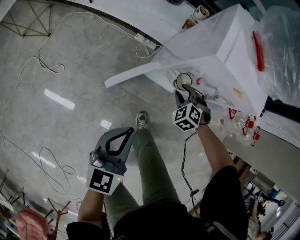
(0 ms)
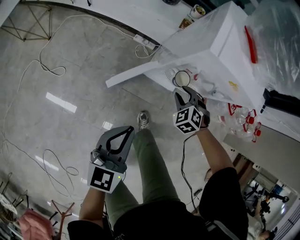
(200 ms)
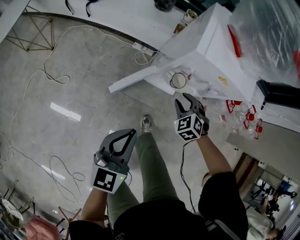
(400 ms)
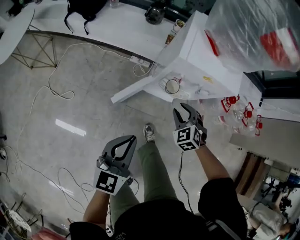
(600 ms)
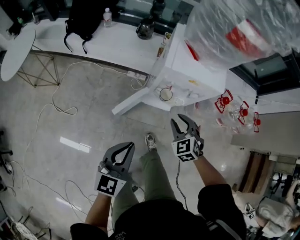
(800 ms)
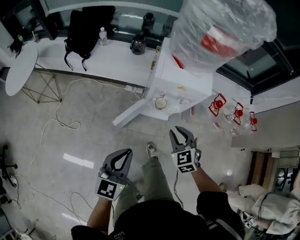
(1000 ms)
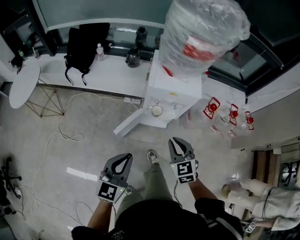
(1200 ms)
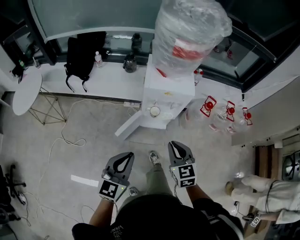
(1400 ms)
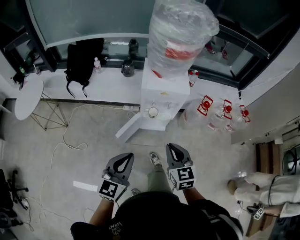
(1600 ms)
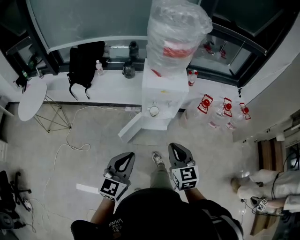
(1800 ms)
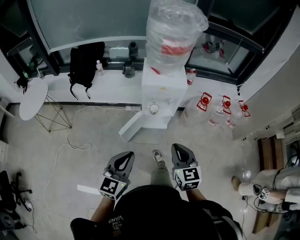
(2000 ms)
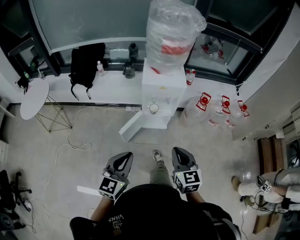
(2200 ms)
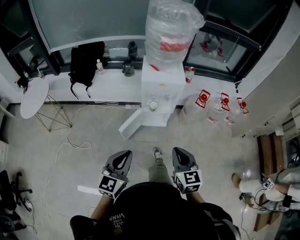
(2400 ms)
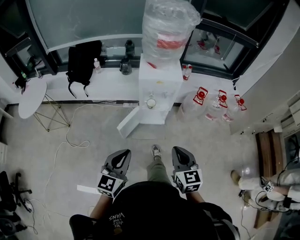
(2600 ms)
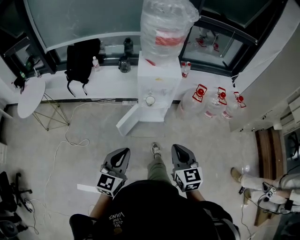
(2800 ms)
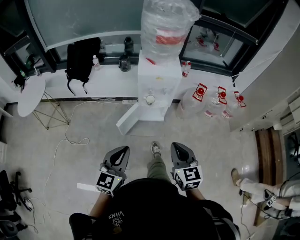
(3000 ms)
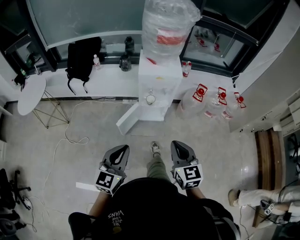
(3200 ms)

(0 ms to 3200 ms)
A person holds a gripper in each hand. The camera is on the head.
0 ms - 1600 ms: The left gripper is displaced upward and backward by about 35 cm, and changes its angle by roughly 20 degrees, while the right gripper heads upward and backward, covering some 50 cm, and rotates around the line of its fingers by roughly 60 degrees, clockwise from behind.
1600 ms - 3200 ms: The grippers both shift backward by about 15 cm.

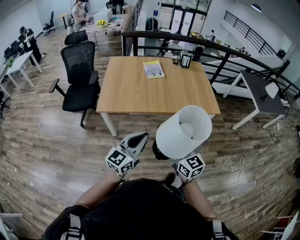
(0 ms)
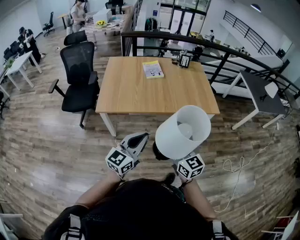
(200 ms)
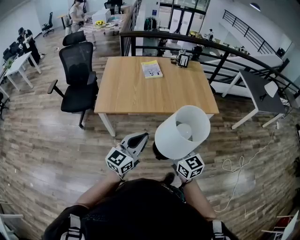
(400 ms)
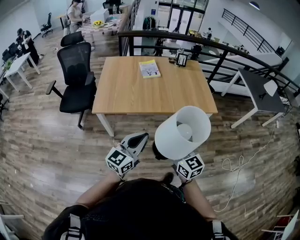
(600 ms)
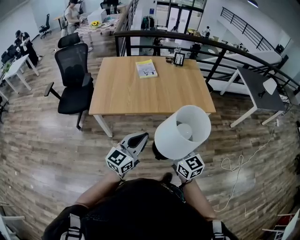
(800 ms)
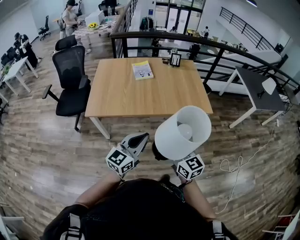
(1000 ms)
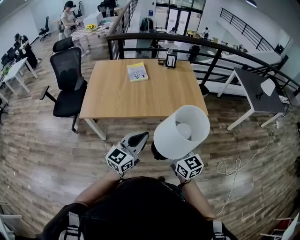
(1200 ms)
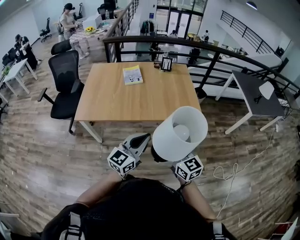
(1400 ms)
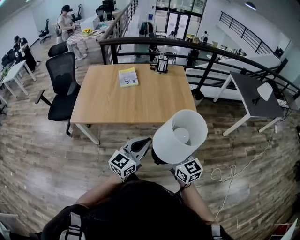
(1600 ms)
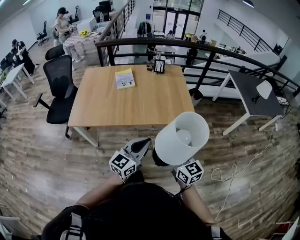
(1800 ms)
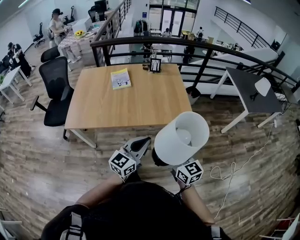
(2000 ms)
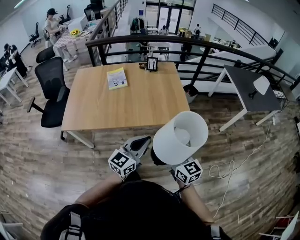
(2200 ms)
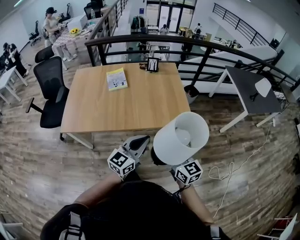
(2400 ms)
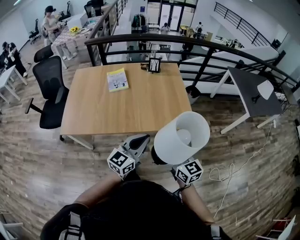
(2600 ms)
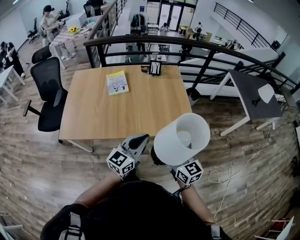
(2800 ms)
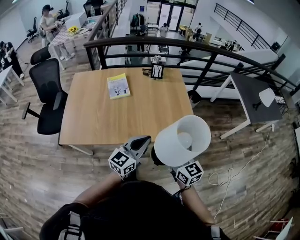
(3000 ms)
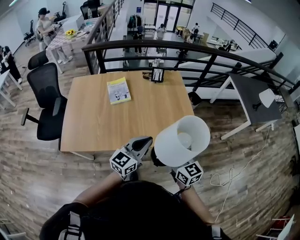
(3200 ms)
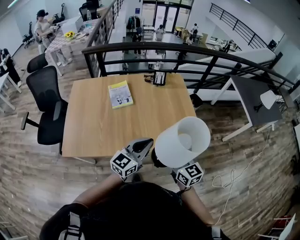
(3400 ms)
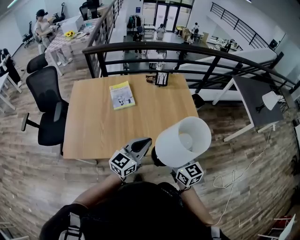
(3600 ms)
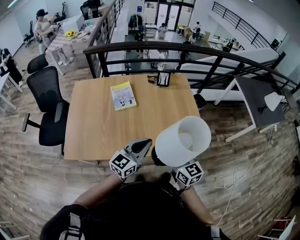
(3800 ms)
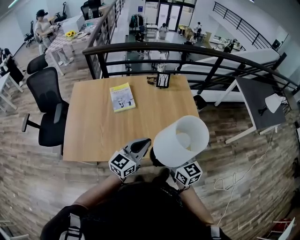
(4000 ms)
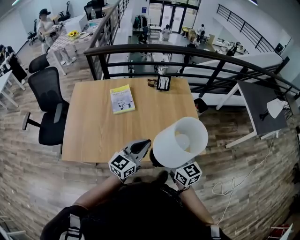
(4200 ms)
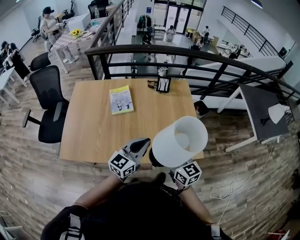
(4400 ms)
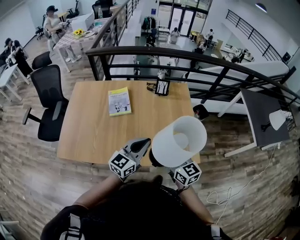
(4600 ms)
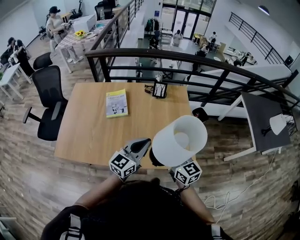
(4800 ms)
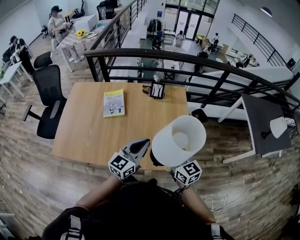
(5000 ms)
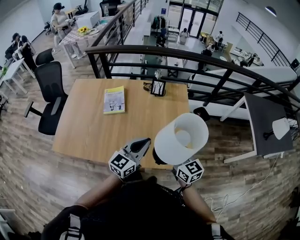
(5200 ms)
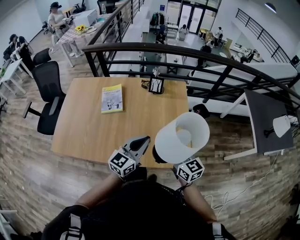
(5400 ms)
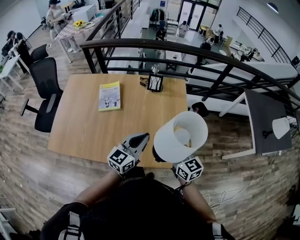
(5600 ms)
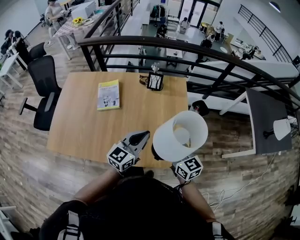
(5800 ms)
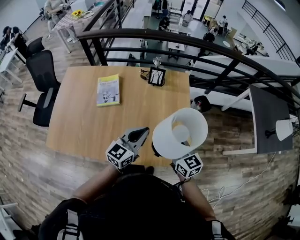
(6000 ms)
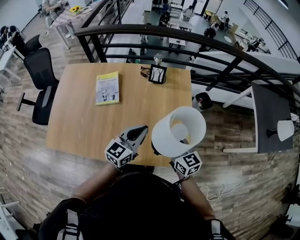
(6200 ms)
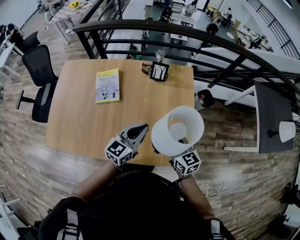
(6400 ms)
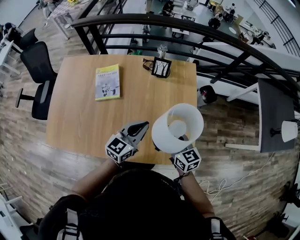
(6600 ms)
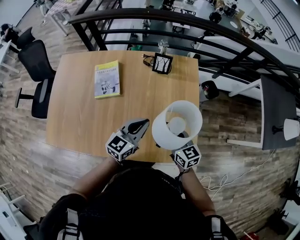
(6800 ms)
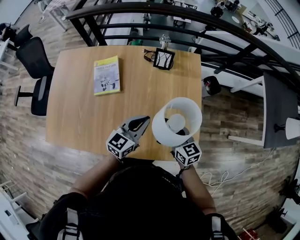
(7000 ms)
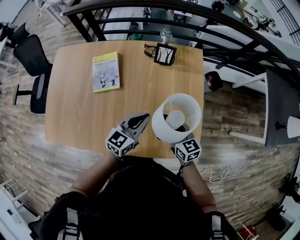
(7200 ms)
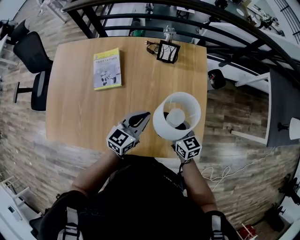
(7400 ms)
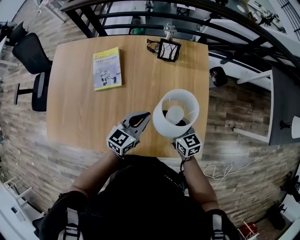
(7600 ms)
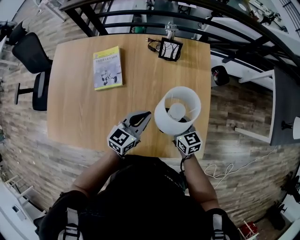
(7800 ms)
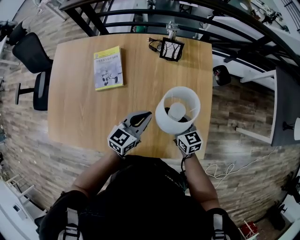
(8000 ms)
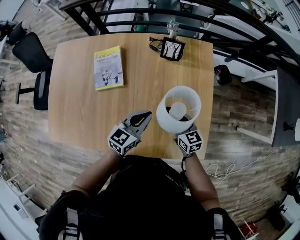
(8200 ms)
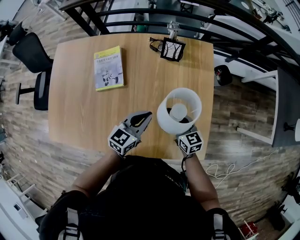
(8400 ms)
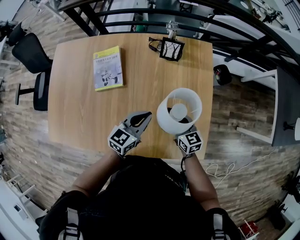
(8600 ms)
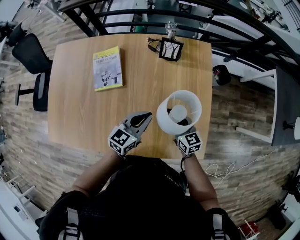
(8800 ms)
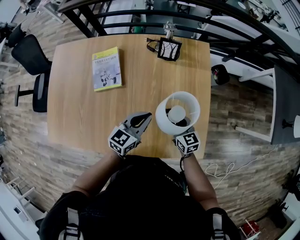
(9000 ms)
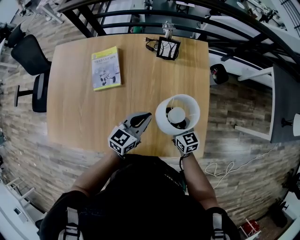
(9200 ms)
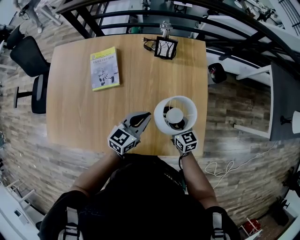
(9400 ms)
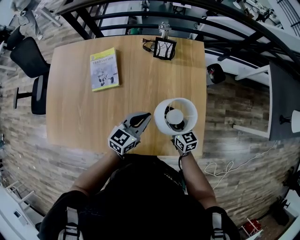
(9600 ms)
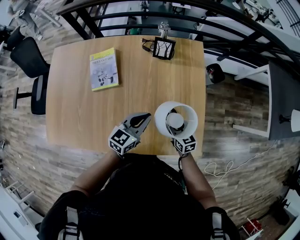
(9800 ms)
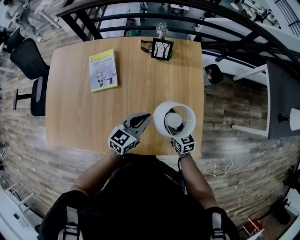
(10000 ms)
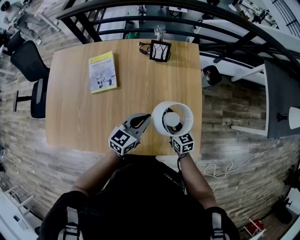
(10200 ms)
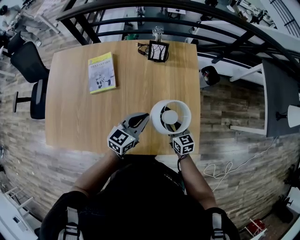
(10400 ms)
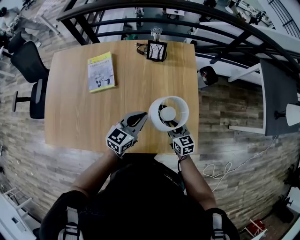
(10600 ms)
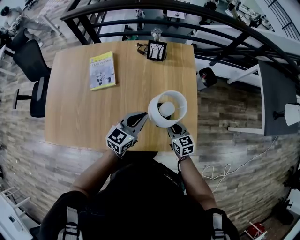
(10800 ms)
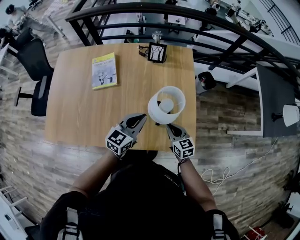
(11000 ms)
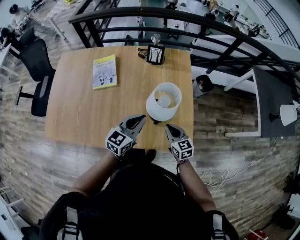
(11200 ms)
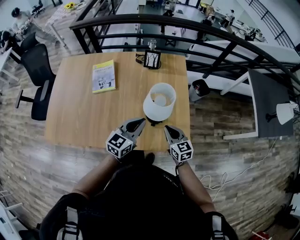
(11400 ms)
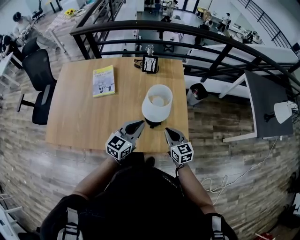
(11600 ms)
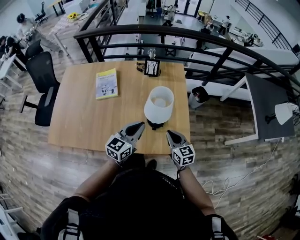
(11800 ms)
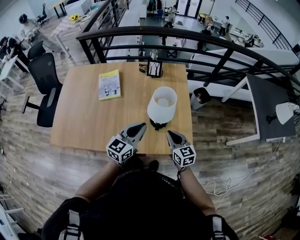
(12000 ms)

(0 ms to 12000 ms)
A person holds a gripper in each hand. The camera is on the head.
0 ms - 1600 ms: Both grippers move to the right, approximately 30 cm.
1600 ms - 3000 ms: The grippers both shift forward by some 20 cm.
3000 ms - 4400 ms: Both grippers move forward, some 15 cm.
4400 ms - 6000 ms: The two grippers go about 20 cm to the right and forward.
6000 ms - 7600 ms: Both grippers travel together downward and forward, about 20 cm.
7600 ms - 9000 ms: The grippers stay close to where they were, moving slightly.
9000 ms - 10400 ms: The left gripper moves roughly 5 cm. Meanwhile the right gripper moves backward, approximately 5 cm.
10400 ms - 12000 ms: The grippers both shift backward and upward by some 20 cm. The right gripper closes.

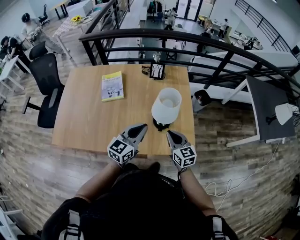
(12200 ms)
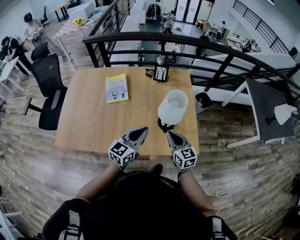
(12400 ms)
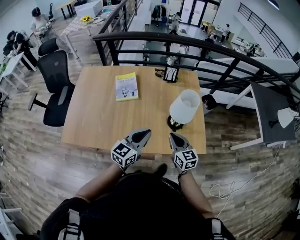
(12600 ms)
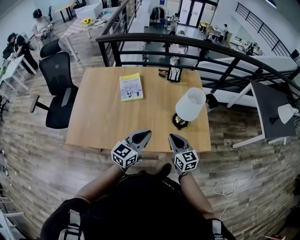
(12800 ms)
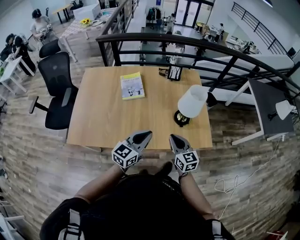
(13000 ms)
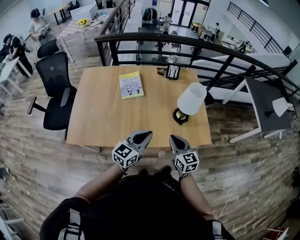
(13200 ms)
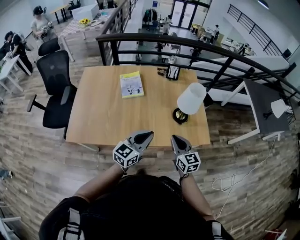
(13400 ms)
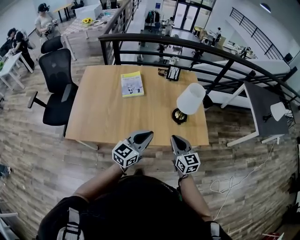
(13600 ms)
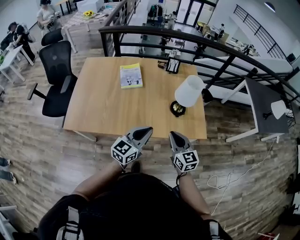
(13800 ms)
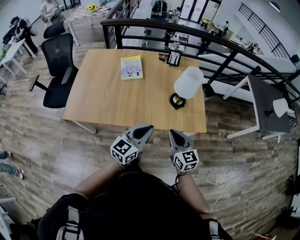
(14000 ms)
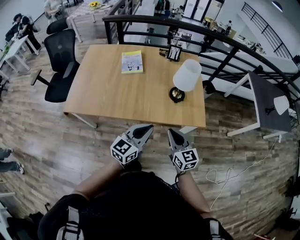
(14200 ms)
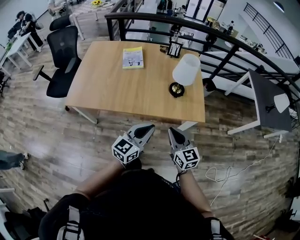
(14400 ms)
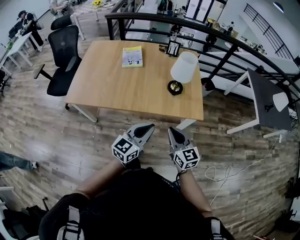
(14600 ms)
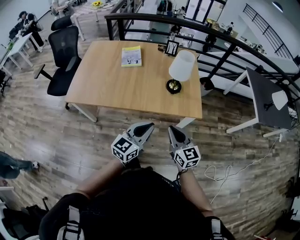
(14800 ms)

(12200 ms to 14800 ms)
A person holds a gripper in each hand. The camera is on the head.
12200 ms - 13400 ms: The right gripper shifts approximately 20 cm to the left and backward. Meanwhile the left gripper shifts approximately 20 cm backward and to the left.
13400 ms - 14800 ms: Both grippers travel together backward and to the right, approximately 25 cm.

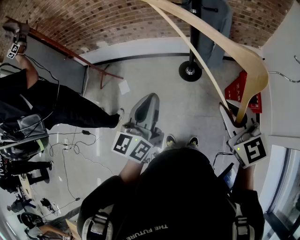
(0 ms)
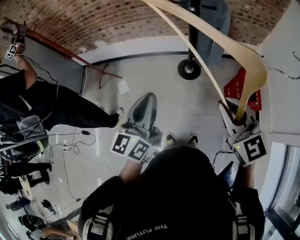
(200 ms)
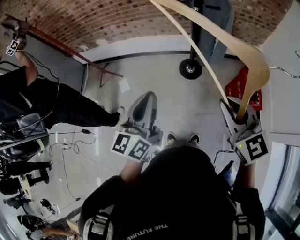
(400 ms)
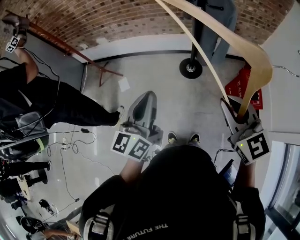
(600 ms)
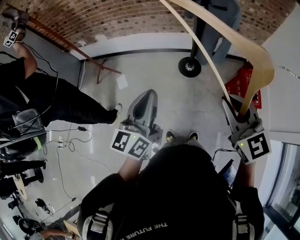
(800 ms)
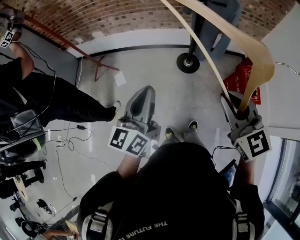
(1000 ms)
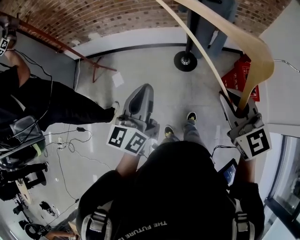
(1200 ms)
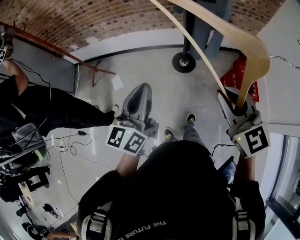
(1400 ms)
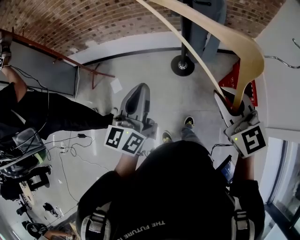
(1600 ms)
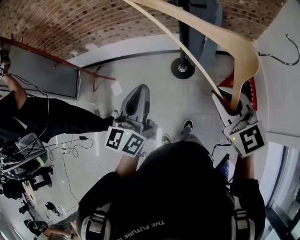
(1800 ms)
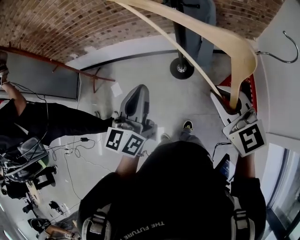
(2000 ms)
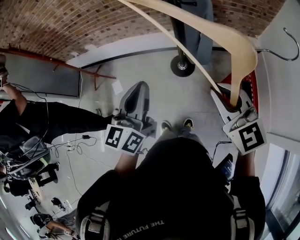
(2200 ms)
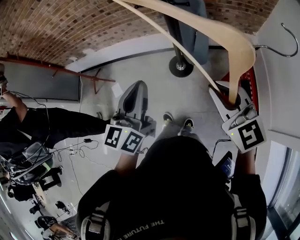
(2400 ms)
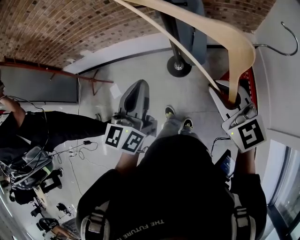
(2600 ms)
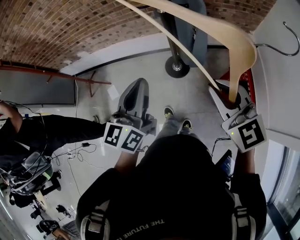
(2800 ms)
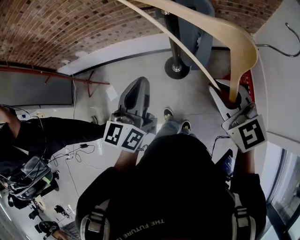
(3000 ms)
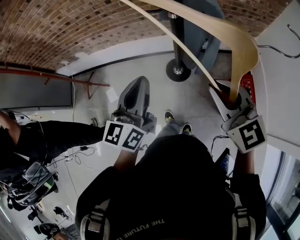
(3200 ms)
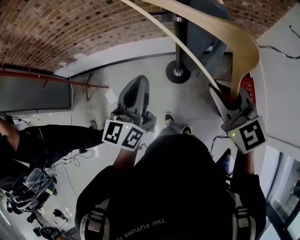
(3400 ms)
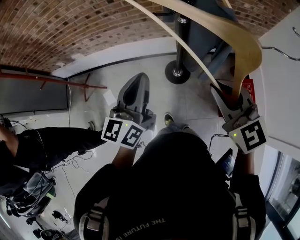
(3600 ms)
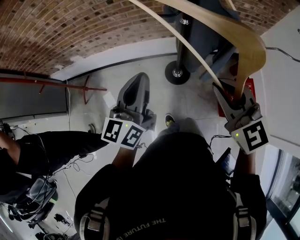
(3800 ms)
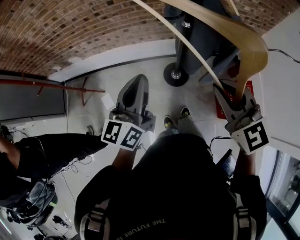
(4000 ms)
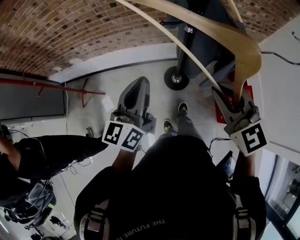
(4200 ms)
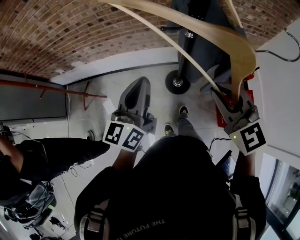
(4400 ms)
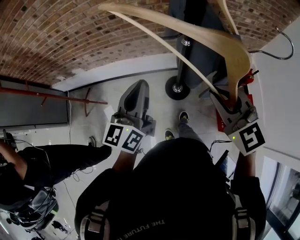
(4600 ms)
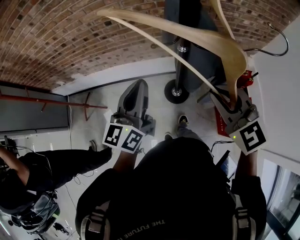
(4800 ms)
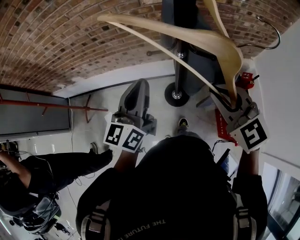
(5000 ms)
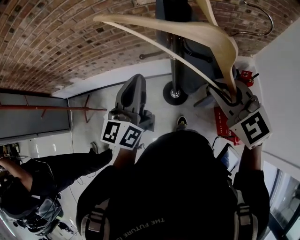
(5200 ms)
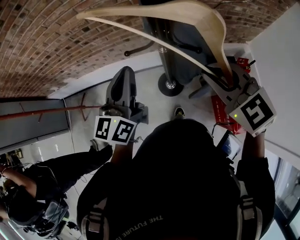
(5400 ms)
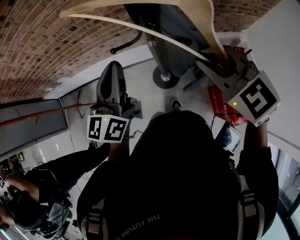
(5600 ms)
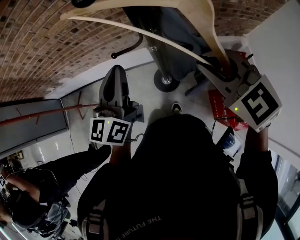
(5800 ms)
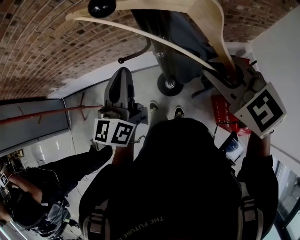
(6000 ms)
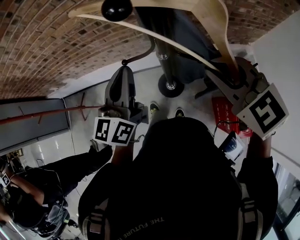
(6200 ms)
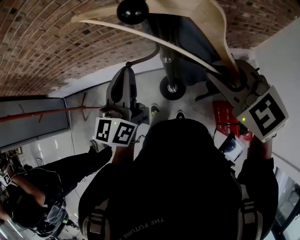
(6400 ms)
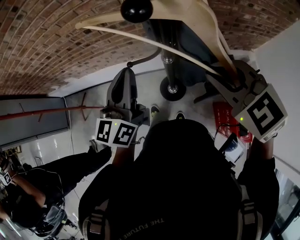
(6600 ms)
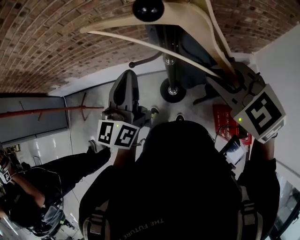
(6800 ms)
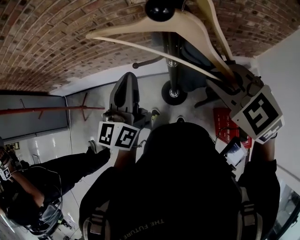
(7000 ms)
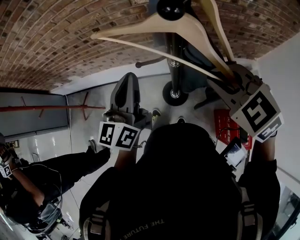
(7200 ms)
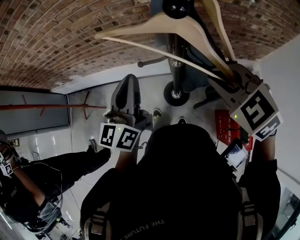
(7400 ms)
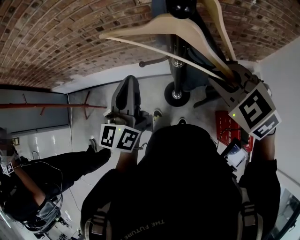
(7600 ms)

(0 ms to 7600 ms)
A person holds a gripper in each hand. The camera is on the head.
0 ms - 1600 ms: The two grippers go approximately 5 cm forward. The left gripper moves approximately 10 cm to the left and comes back. The right gripper moves about 10 cm to the left and comes back.
1600 ms - 3000 ms: The two grippers go roughly 20 cm forward and to the right.
3000 ms - 4600 ms: Both grippers move forward and to the left, some 20 cm.
4600 ms - 6000 ms: The right gripper is displaced to the right and forward by approximately 20 cm. The left gripper shifts roughly 20 cm forward and to the right.
6000 ms - 7600 ms: The right gripper shifts by approximately 5 cm. Meanwhile the left gripper is displaced to the left by roughly 5 cm.
